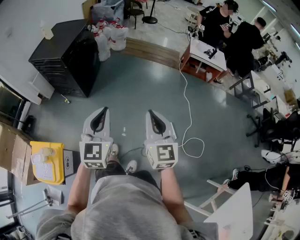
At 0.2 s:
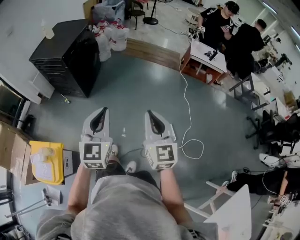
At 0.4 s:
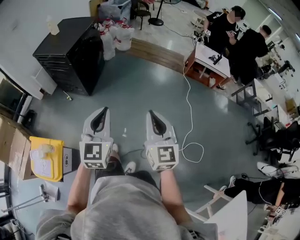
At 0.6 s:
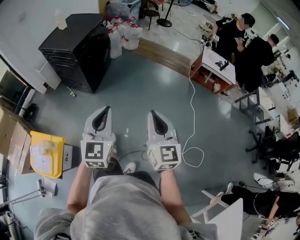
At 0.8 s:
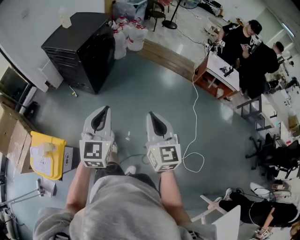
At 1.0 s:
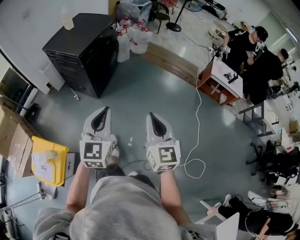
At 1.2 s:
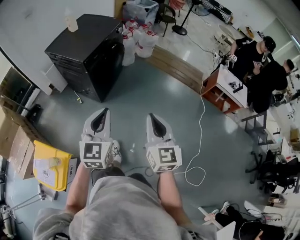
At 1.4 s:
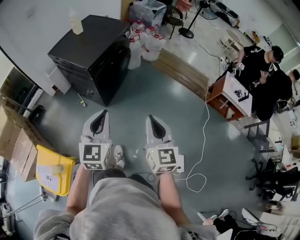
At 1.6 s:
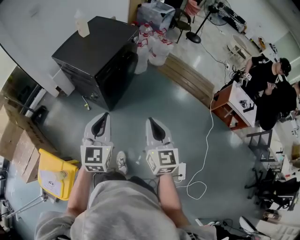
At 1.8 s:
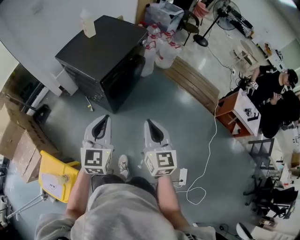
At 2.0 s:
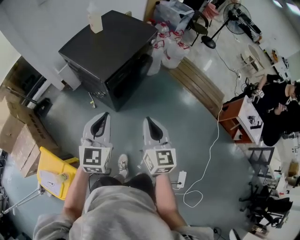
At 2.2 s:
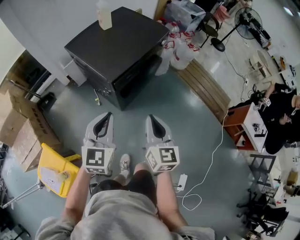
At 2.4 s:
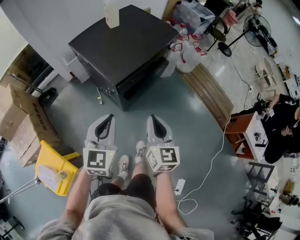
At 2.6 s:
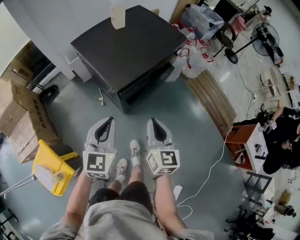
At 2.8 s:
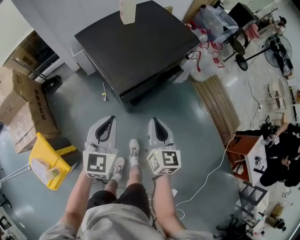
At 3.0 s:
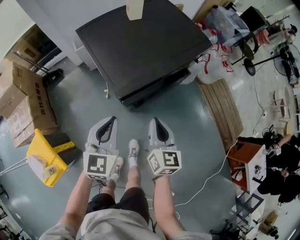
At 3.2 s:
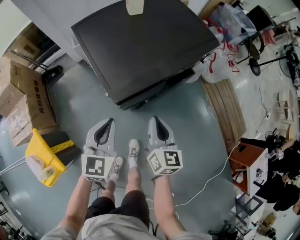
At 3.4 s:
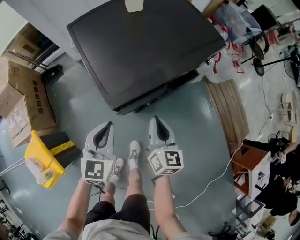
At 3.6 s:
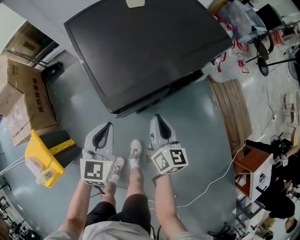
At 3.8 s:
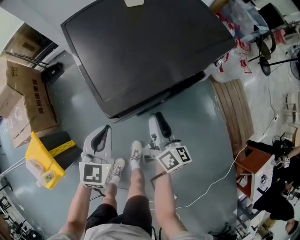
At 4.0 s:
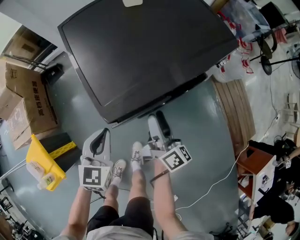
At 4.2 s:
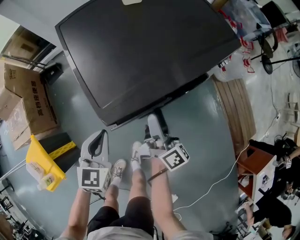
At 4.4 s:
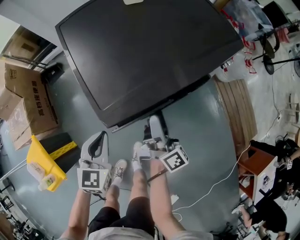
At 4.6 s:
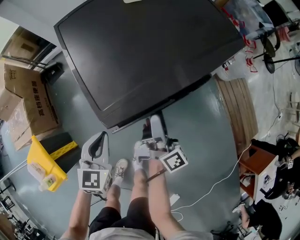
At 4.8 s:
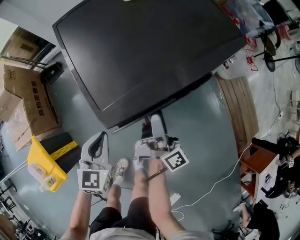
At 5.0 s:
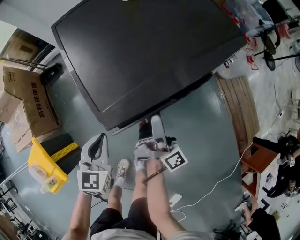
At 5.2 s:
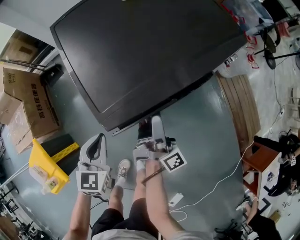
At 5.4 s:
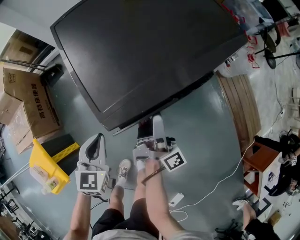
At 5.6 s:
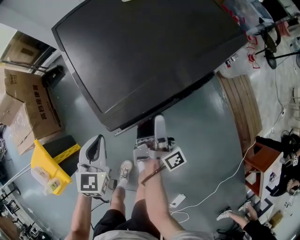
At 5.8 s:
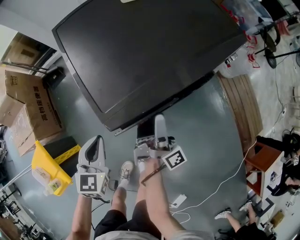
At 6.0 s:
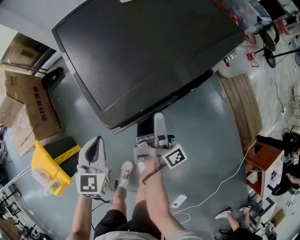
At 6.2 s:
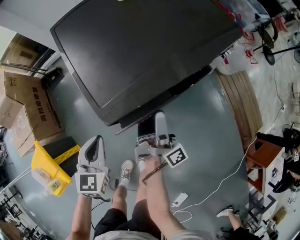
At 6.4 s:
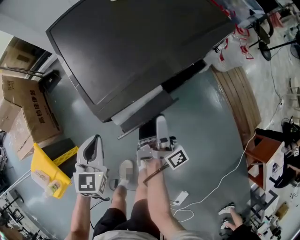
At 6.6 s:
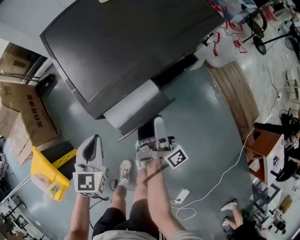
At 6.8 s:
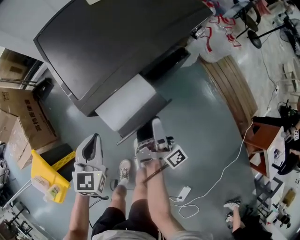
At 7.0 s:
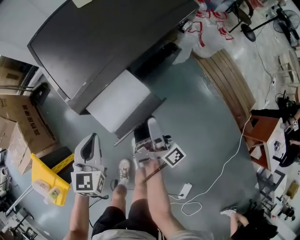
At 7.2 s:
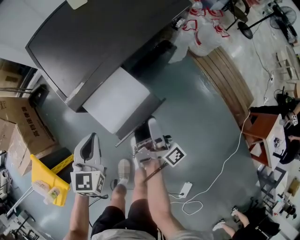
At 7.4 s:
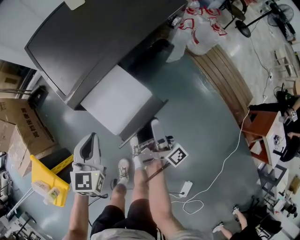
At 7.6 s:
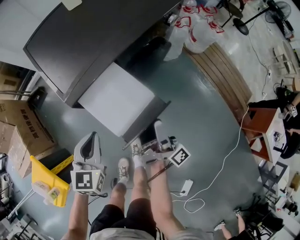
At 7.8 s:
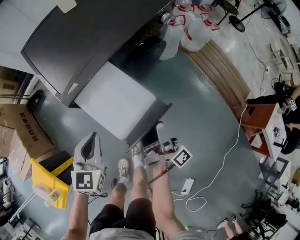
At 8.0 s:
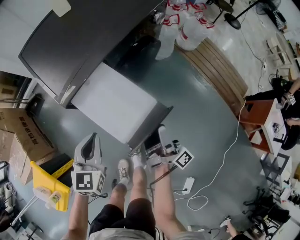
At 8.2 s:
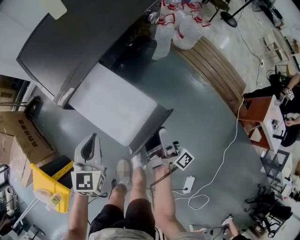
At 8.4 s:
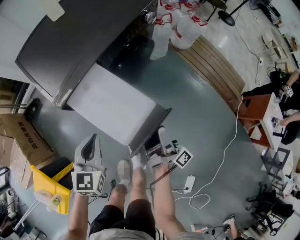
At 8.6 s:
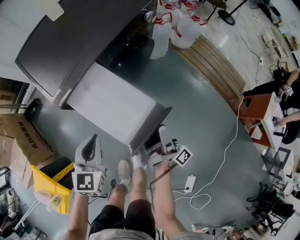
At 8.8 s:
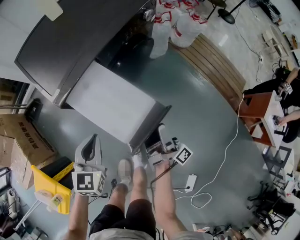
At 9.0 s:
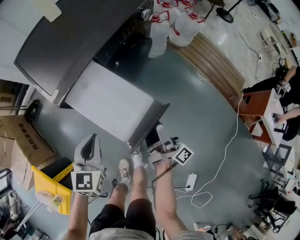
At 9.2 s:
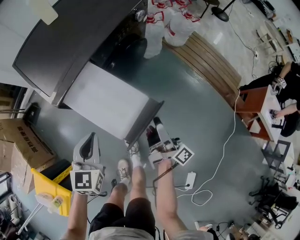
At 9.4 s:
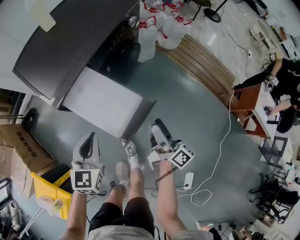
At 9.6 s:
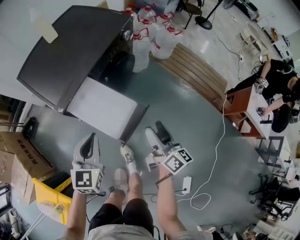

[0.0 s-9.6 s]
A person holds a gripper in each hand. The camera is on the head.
0.0 to 1.6 s: Both grippers travel together forward and to the left, roughly 40 cm.
1.6 to 3.2 s: Both grippers move forward and downward, approximately 40 cm. The left gripper changes its angle by some 30 degrees; the right gripper turns by about 30 degrees.
3.2 to 4.8 s: The right gripper heads forward and downward, covering approximately 10 cm, rolls clockwise, seen from behind, by roughly 50 degrees, and opens up; the left gripper goes approximately 10 cm downward.
4.8 to 6.4 s: The grippers move only a little.
6.4 to 8.0 s: The right gripper heads backward and to the right, covering approximately 20 cm, while the left gripper heads to the right, covering some 10 cm.
8.0 to 9.6 s: Both grippers move upward and to the right, approximately 10 cm. The right gripper rotates around the line of its fingers by some 40 degrees, counterclockwise from behind.

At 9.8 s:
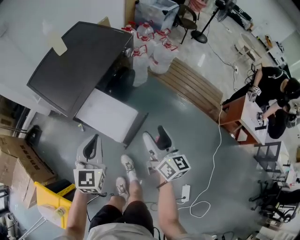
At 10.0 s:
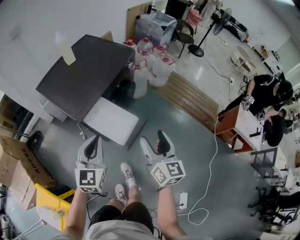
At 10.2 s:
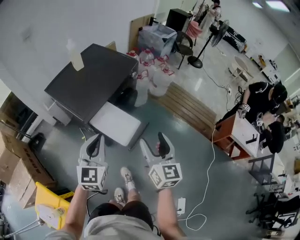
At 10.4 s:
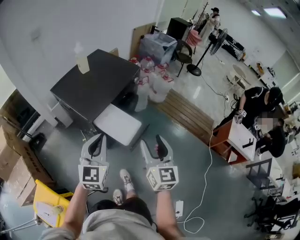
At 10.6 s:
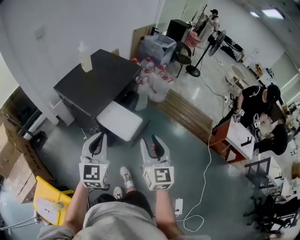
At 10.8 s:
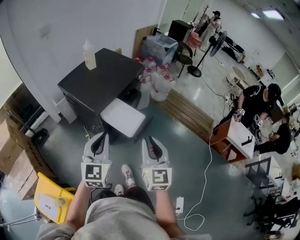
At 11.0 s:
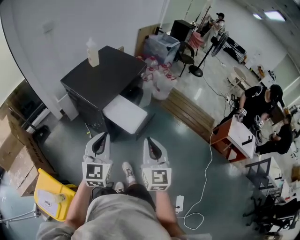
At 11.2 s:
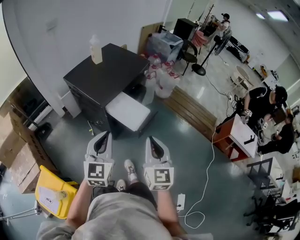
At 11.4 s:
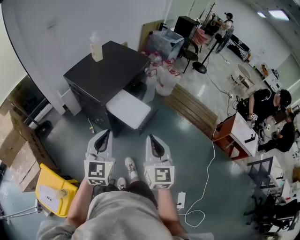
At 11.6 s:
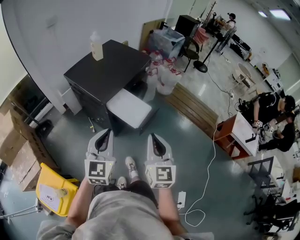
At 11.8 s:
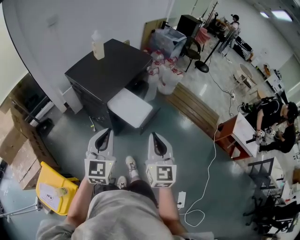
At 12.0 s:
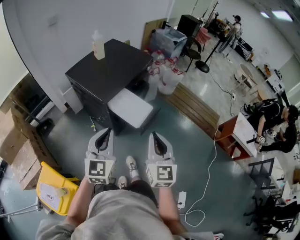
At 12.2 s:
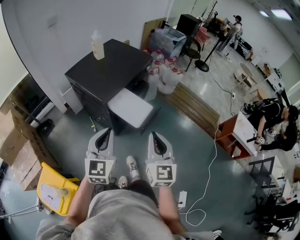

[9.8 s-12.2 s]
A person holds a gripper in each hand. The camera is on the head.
9.8 to 11.0 s: The grippers both shift upward, backward and to the left by roughly 25 cm. The right gripper turns by about 40 degrees, and closes its fingers.
11.0 to 12.2 s: The two grippers keep their place.

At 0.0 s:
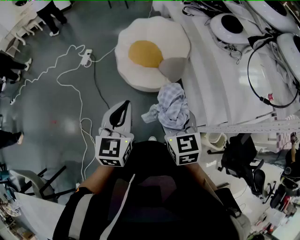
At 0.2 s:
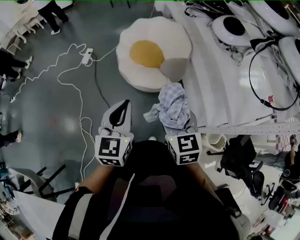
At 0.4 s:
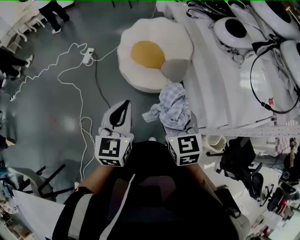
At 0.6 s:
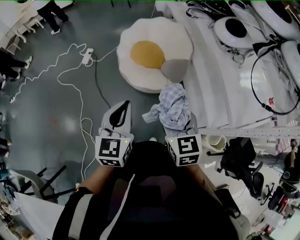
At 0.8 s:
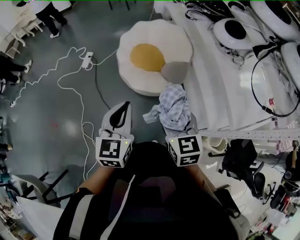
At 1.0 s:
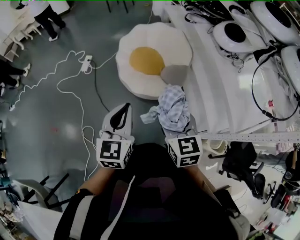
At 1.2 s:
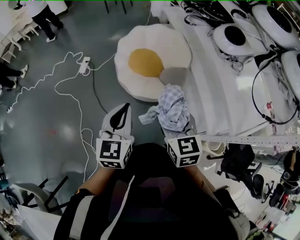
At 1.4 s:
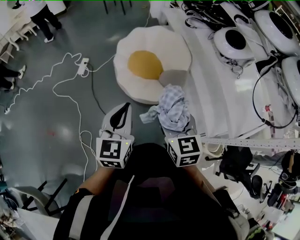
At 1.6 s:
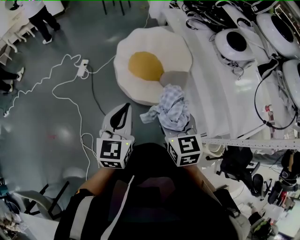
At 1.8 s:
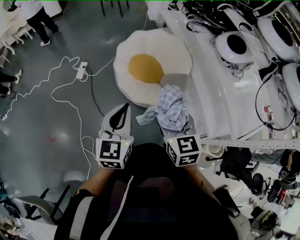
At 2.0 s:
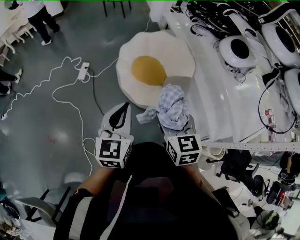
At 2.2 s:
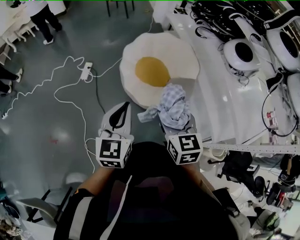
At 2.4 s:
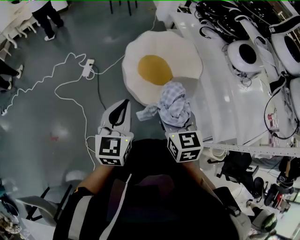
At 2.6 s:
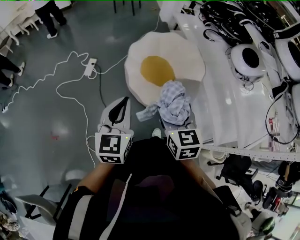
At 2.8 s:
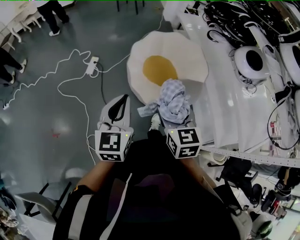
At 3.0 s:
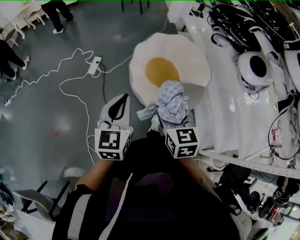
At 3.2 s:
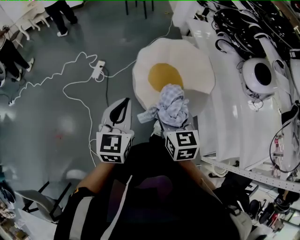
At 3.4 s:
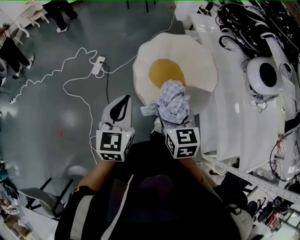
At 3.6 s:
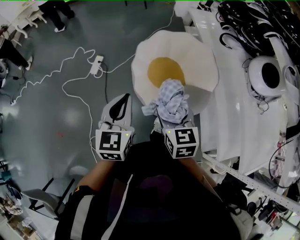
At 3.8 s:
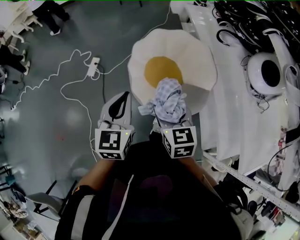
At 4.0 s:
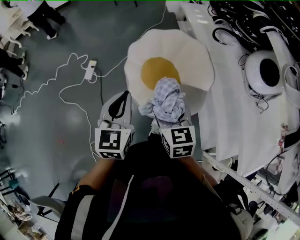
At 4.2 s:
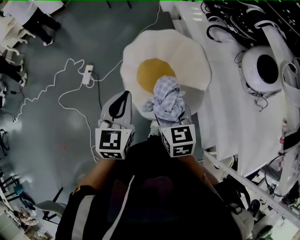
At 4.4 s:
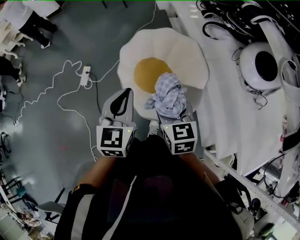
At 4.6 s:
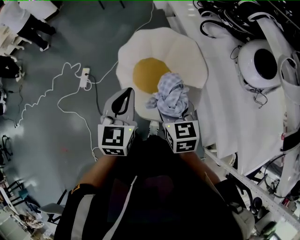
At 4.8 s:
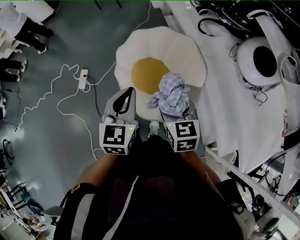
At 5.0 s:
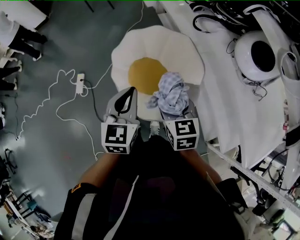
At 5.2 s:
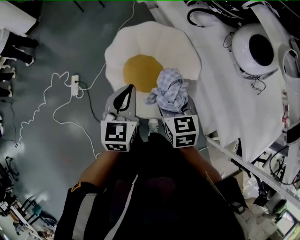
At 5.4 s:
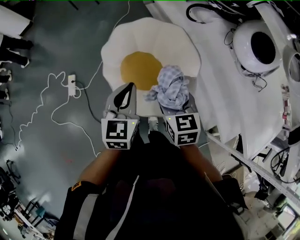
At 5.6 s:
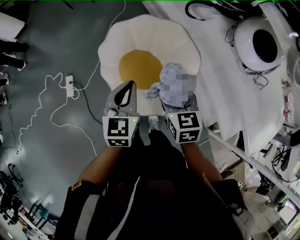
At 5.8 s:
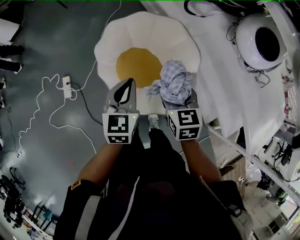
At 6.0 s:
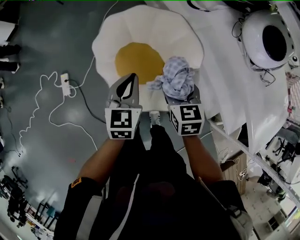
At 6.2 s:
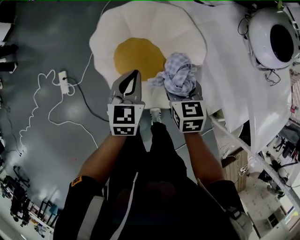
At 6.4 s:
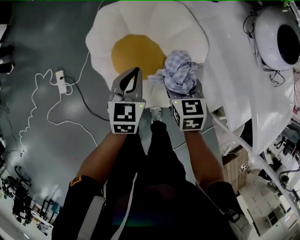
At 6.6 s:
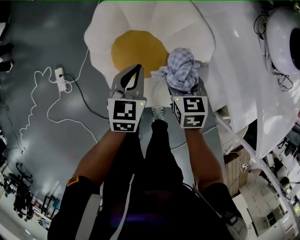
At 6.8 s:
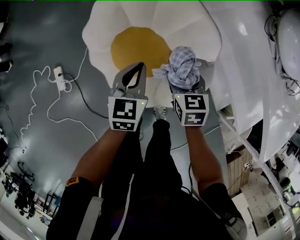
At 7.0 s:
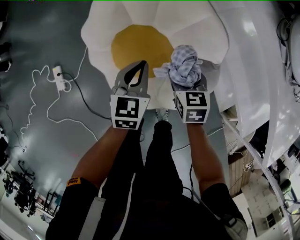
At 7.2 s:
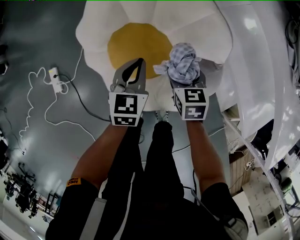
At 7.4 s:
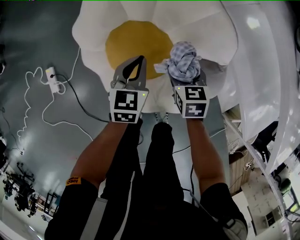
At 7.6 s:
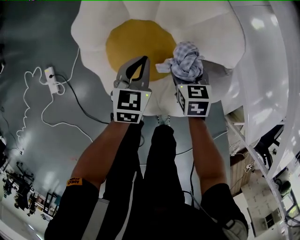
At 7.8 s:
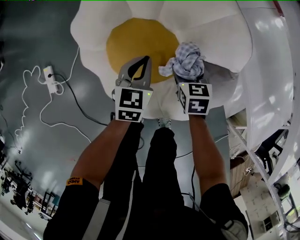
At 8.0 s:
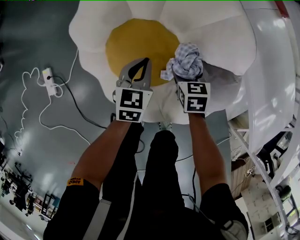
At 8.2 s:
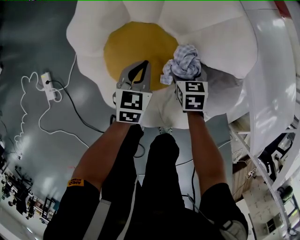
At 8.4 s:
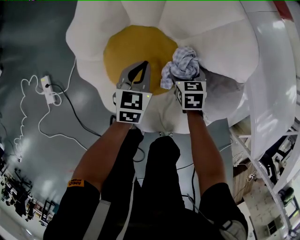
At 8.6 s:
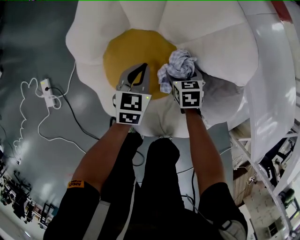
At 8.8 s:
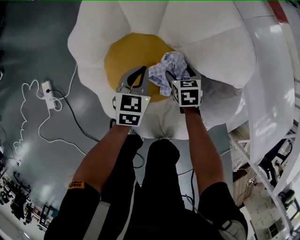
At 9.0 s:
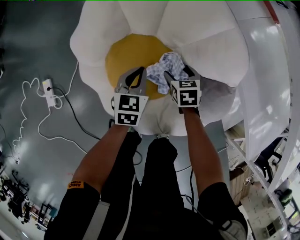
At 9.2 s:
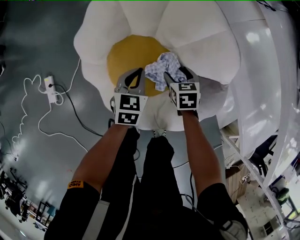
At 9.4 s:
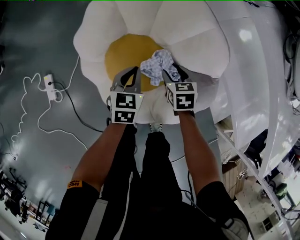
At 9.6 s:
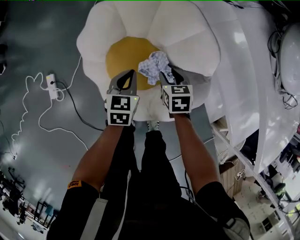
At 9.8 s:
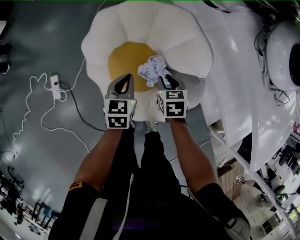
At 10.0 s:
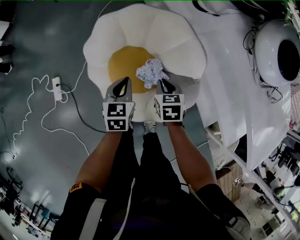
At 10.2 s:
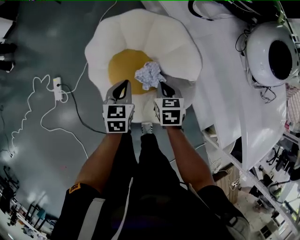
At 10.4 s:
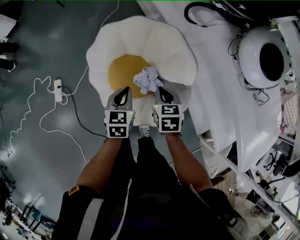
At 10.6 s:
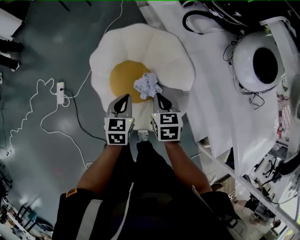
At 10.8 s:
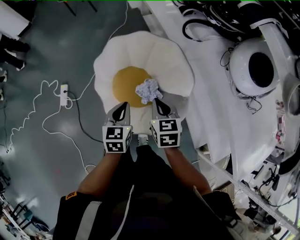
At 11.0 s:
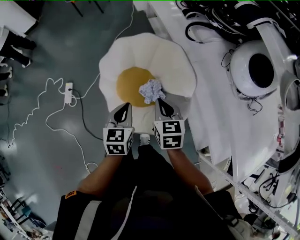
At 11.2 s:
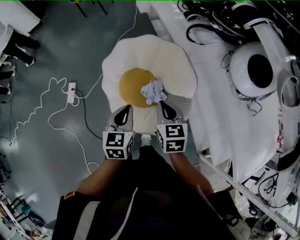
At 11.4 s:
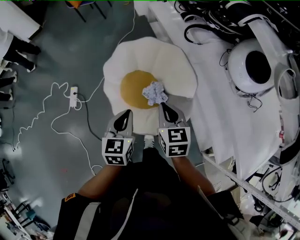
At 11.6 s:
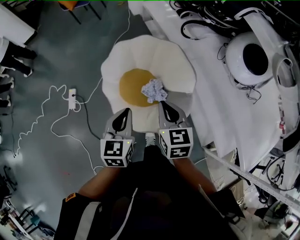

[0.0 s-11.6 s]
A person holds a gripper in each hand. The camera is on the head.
0.0 to 1.4 s: The two grippers go some 10 cm forward and to the left.
1.4 to 2.8 s: Both grippers travel together to the left and forward, approximately 20 cm.
2.8 to 4.4 s: Both grippers move forward and to the right, approximately 30 cm.
4.4 to 5.8 s: The left gripper travels forward and downward by about 20 cm, while the right gripper goes approximately 15 cm forward, downward and to the right.
5.8 to 7.2 s: The two grippers go roughly 30 cm downward.
7.2 to 8.8 s: Both grippers move downward, roughly 20 cm.
8.8 to 10.2 s: The two grippers go some 35 cm upward. The right gripper closes up.
10.2 to 11.6 s: The two grippers go about 25 cm upward and backward. The right gripper swivels some 20 degrees.
